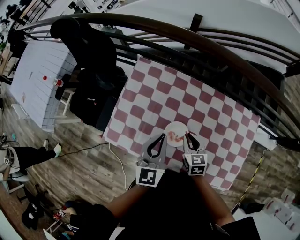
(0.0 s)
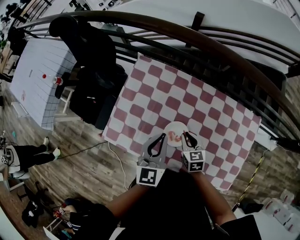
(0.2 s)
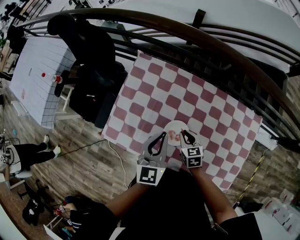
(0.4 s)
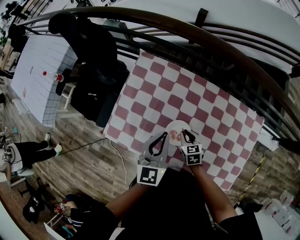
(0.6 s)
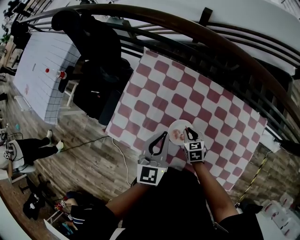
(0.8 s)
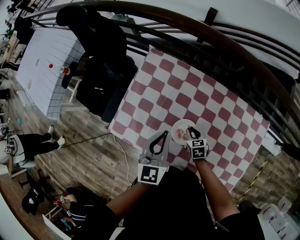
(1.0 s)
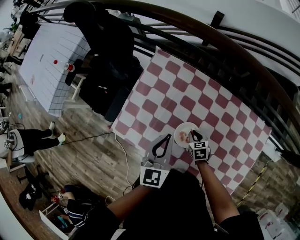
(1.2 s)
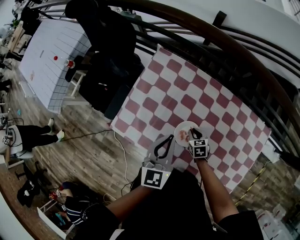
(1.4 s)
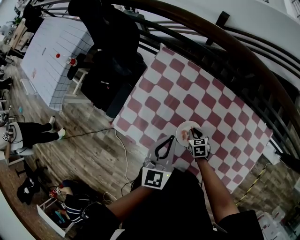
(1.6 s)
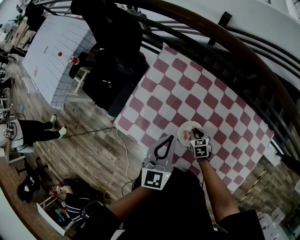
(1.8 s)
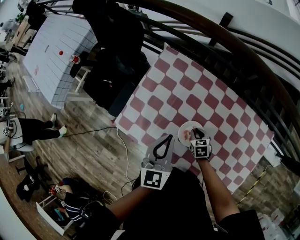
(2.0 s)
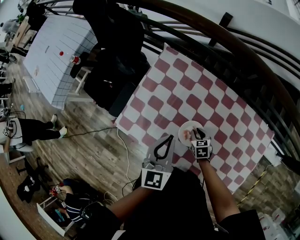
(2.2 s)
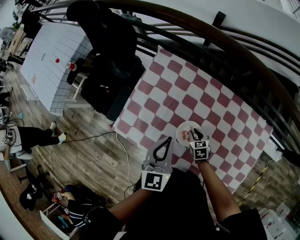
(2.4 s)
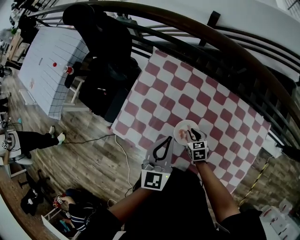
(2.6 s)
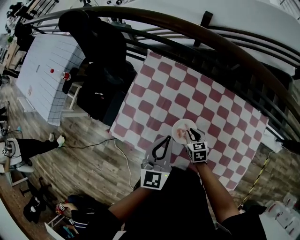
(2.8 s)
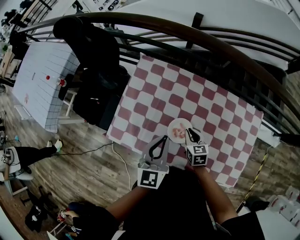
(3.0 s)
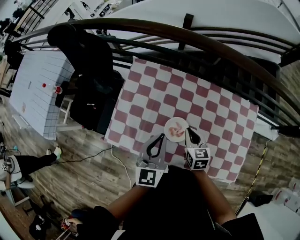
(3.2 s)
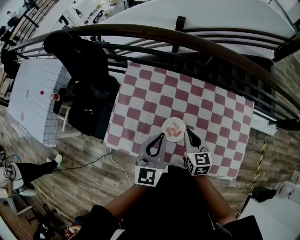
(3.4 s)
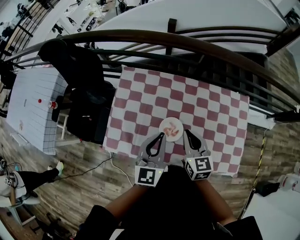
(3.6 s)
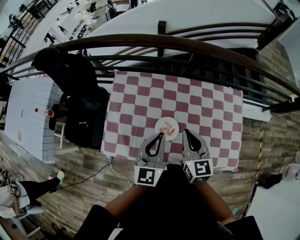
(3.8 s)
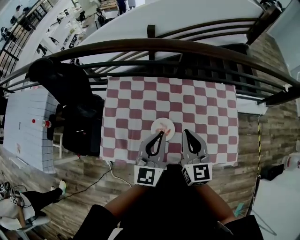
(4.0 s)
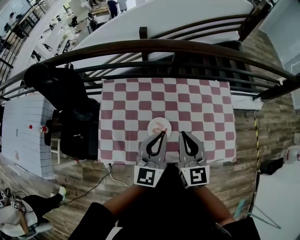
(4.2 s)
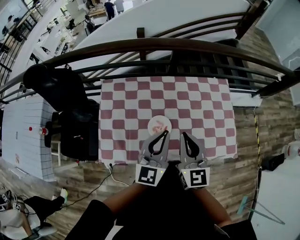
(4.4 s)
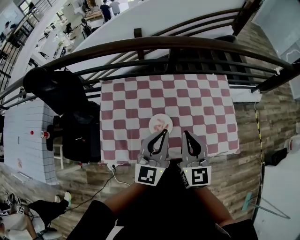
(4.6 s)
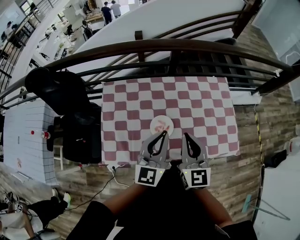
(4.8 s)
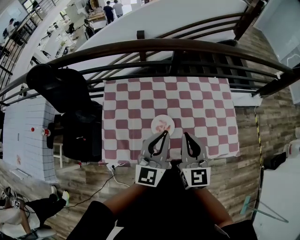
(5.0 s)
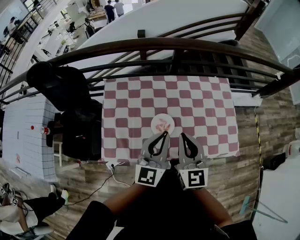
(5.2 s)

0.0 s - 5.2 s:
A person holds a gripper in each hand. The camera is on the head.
0.0 s - 1.8 s: The right gripper goes some 15 cm downward, and changes its angle by approximately 20 degrees.
1.8 s - 3.4 s: The right gripper shifts approximately 25 cm upward, and swivels approximately 40 degrees; the left gripper ends up roughly 5 cm from where it was.
3.4 s - 5.2 s: The right gripper travels upward and backward by about 15 cm, and turns by about 30 degrees, while the left gripper heads to the right, backward and upward, covering about 10 cm, and rotates some 20 degrees.

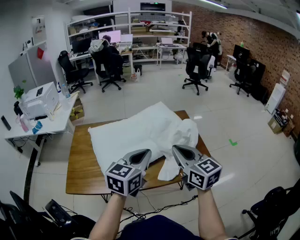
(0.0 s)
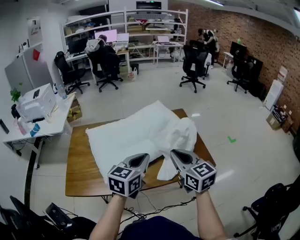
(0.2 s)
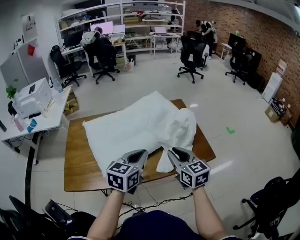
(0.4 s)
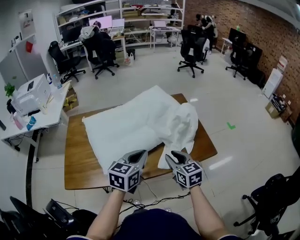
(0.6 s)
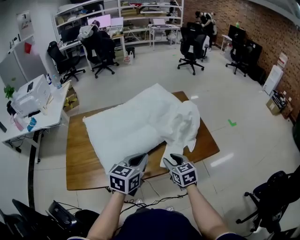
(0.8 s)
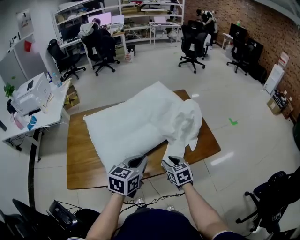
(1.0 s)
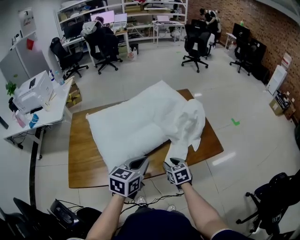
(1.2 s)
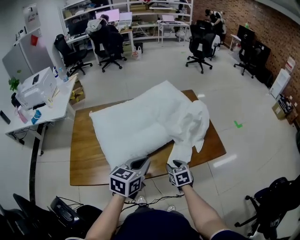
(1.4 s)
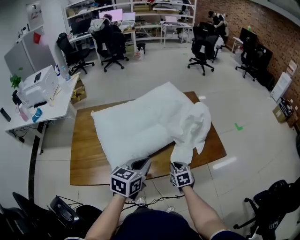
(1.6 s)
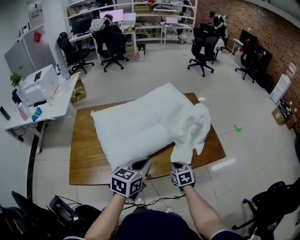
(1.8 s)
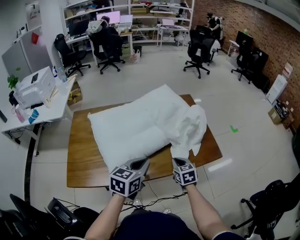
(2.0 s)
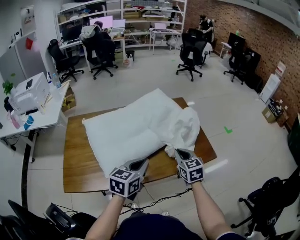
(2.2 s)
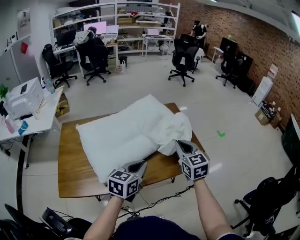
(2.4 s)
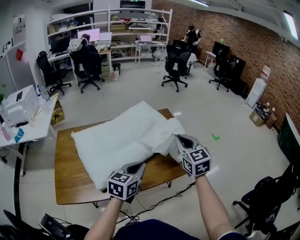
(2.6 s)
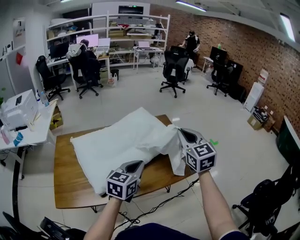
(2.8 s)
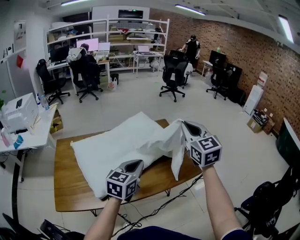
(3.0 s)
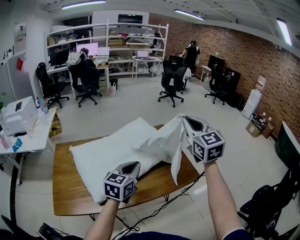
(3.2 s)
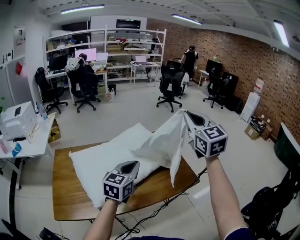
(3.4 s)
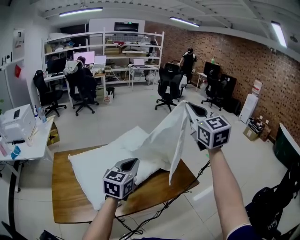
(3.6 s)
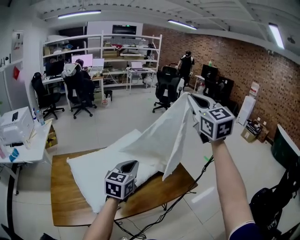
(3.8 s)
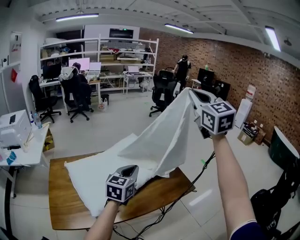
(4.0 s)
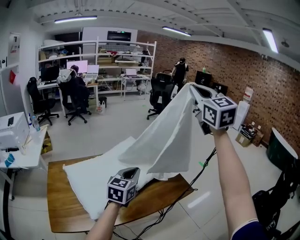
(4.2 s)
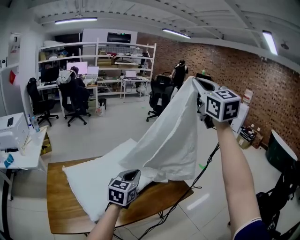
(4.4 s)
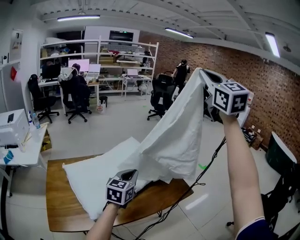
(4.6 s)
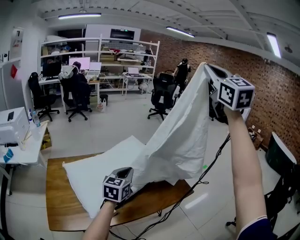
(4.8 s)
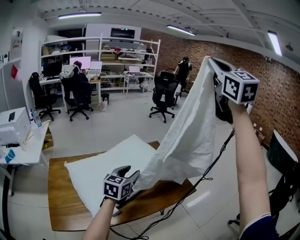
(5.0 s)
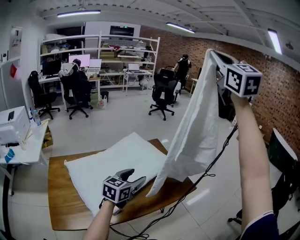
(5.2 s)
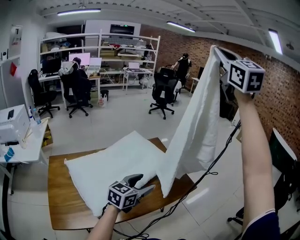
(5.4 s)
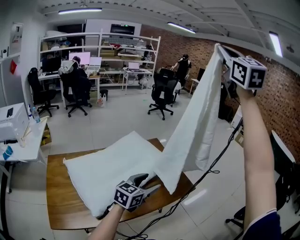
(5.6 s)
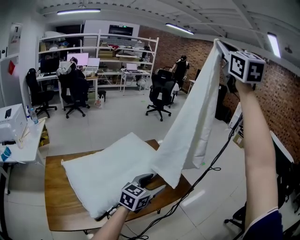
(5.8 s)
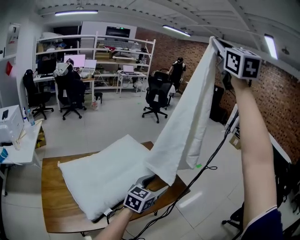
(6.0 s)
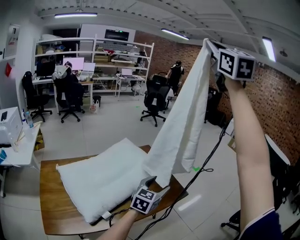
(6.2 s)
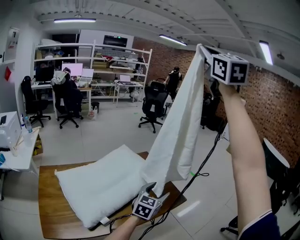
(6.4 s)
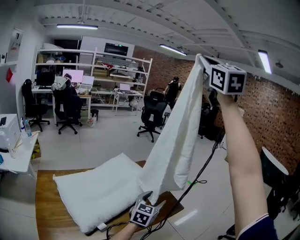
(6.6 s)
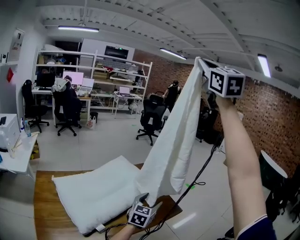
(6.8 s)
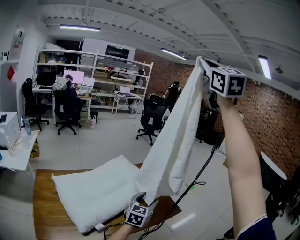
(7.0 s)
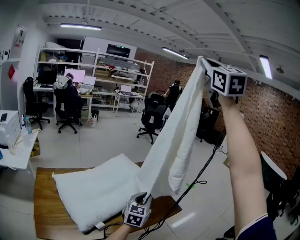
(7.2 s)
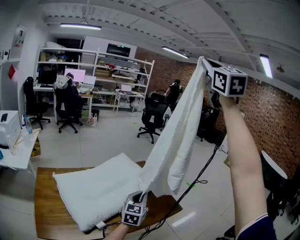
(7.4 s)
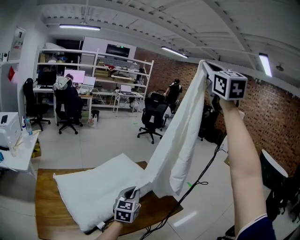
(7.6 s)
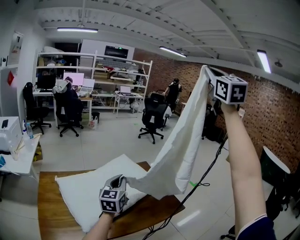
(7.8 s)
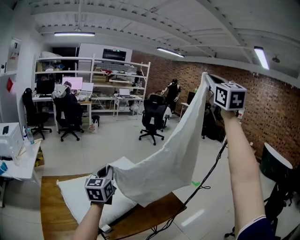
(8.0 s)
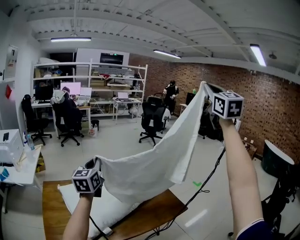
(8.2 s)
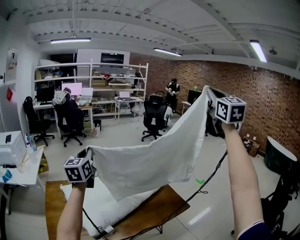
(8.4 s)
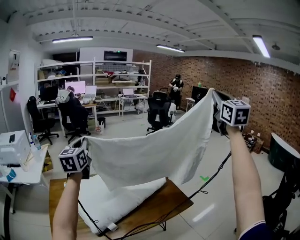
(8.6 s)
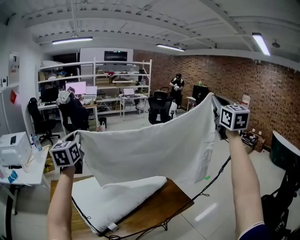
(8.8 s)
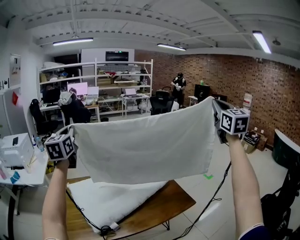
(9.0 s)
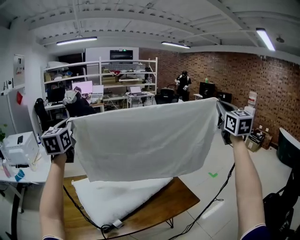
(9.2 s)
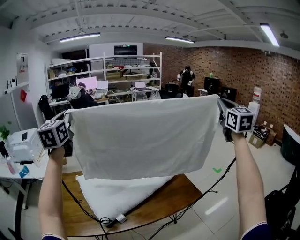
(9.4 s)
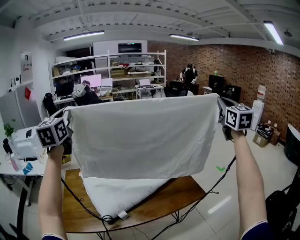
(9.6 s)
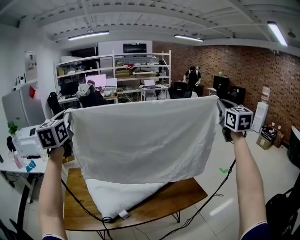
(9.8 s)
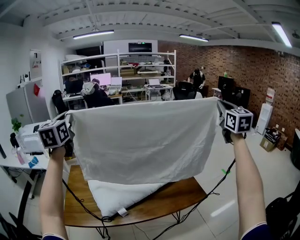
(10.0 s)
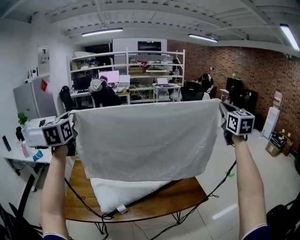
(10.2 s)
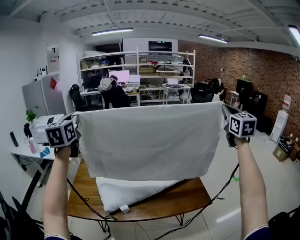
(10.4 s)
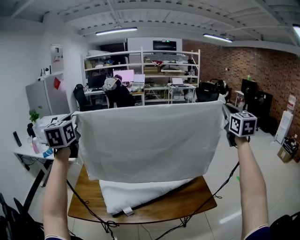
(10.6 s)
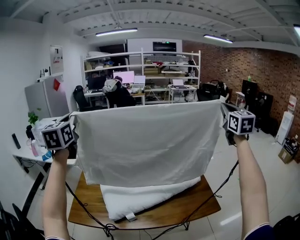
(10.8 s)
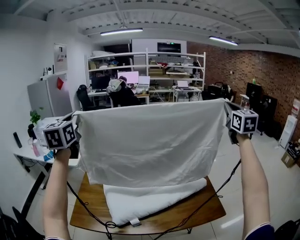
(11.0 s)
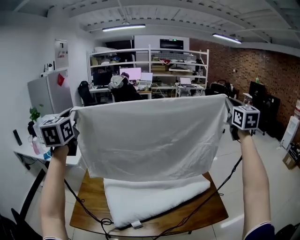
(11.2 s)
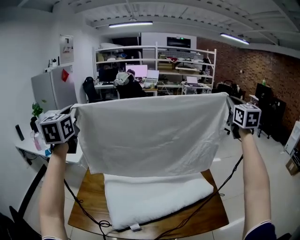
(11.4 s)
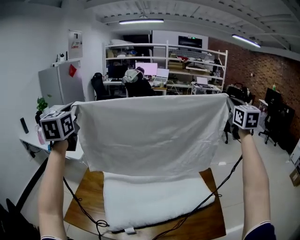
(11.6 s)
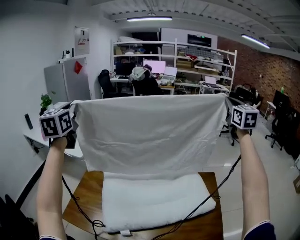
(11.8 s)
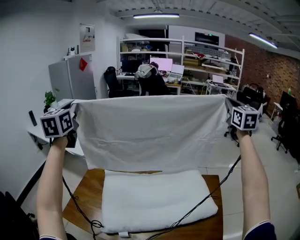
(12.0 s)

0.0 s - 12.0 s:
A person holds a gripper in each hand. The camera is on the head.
0.0 s - 1.6 s: The left gripper is displaced downward by about 15 cm, while the right gripper travels downward by roughly 35 cm, tilts its fingers approximately 40 degrees downward, and opens and closes again.
1.6 s - 3.0 s: The right gripper is displaced upward by some 40 cm, and tips its fingers upward by about 40 degrees, while the left gripper is displaced upward and forward by some 10 cm.
3.0 s - 4.4 s: The left gripper goes approximately 5 cm forward. Meanwhile the right gripper moves upward, some 30 cm.
4.4 s - 6.0 s: The right gripper goes some 15 cm upward; the left gripper moves to the right, roughly 10 cm, and opens its fingers.
6.0 s - 7.6 s: The left gripper travels to the left by about 10 cm, rotates approximately 20 degrees, and closes.
7.6 s - 9.0 s: The right gripper travels downward and to the right by some 25 cm. The left gripper heads to the left and upward, covering approximately 40 cm, and rotates about 30 degrees.
9.0 s - 10.4 s: The right gripper travels forward and downward by about 10 cm. The left gripper is displaced backward and to the left by roughly 15 cm.
10.4 s - 12.0 s: The left gripper travels forward and to the left by about 20 cm, while the right gripper is displaced forward by approximately 40 cm.

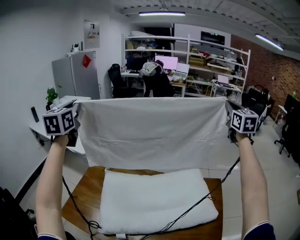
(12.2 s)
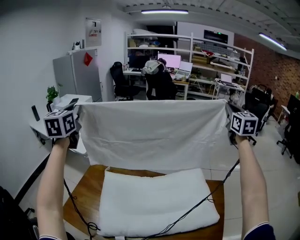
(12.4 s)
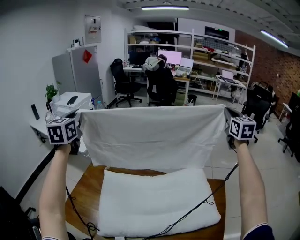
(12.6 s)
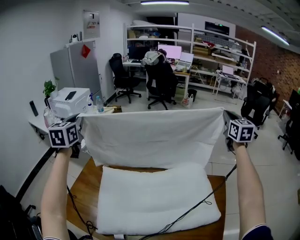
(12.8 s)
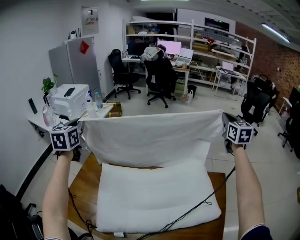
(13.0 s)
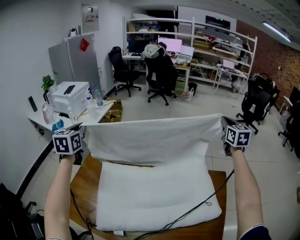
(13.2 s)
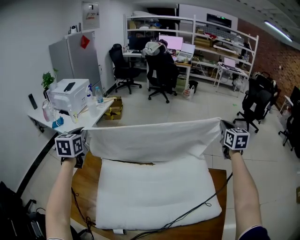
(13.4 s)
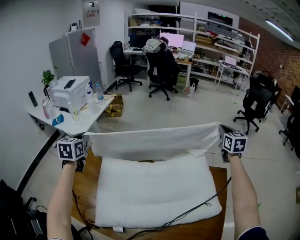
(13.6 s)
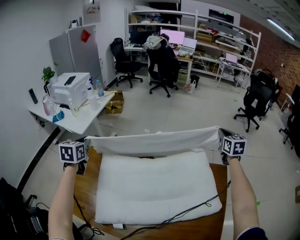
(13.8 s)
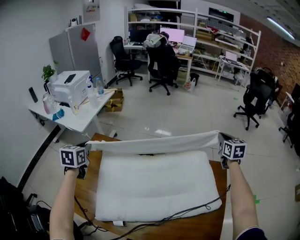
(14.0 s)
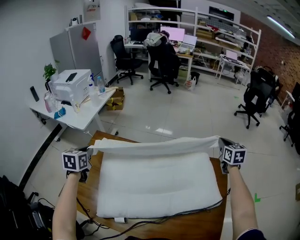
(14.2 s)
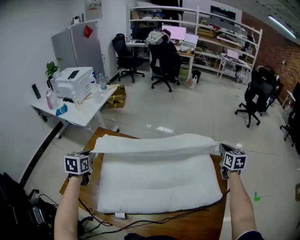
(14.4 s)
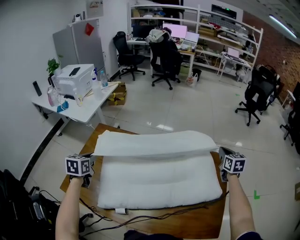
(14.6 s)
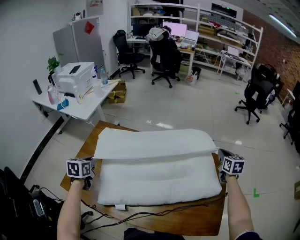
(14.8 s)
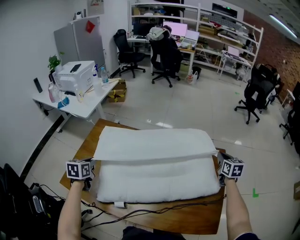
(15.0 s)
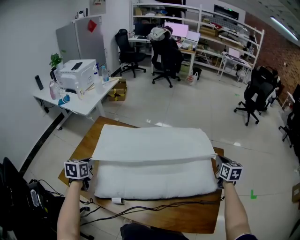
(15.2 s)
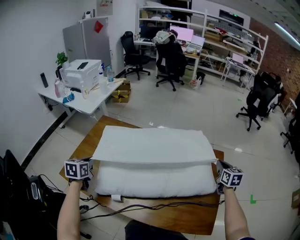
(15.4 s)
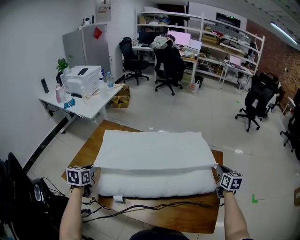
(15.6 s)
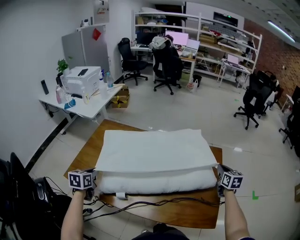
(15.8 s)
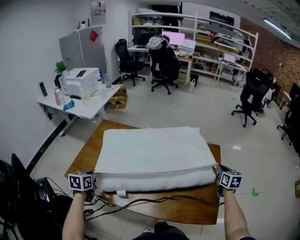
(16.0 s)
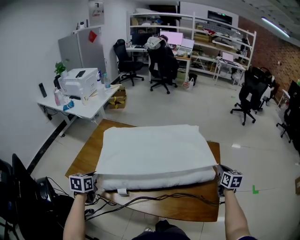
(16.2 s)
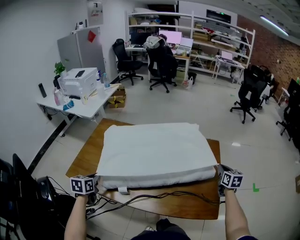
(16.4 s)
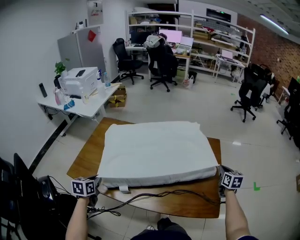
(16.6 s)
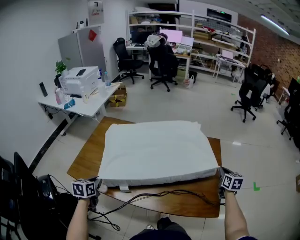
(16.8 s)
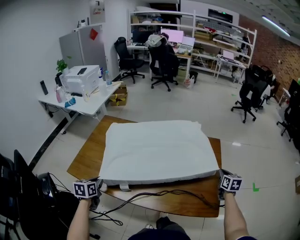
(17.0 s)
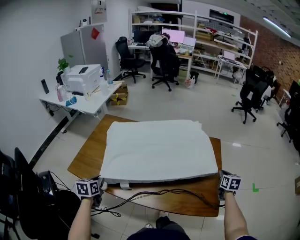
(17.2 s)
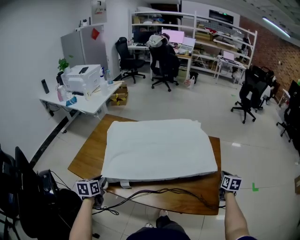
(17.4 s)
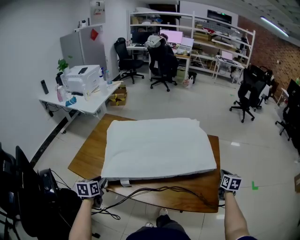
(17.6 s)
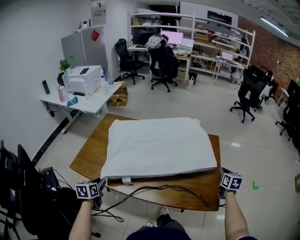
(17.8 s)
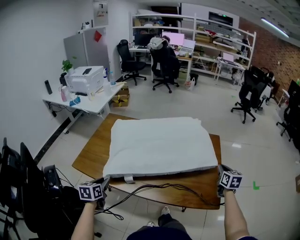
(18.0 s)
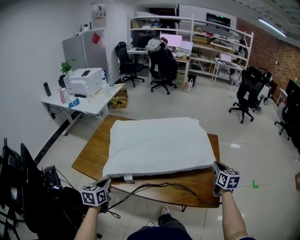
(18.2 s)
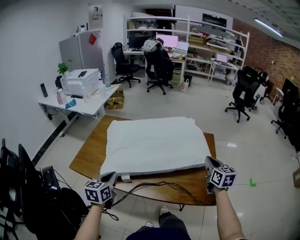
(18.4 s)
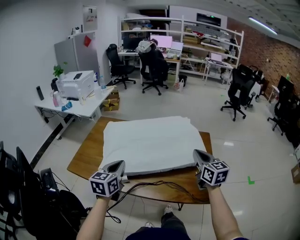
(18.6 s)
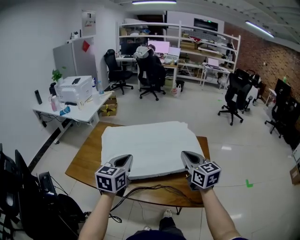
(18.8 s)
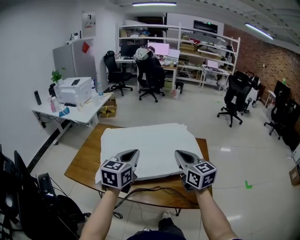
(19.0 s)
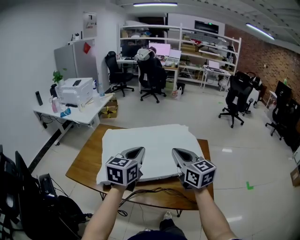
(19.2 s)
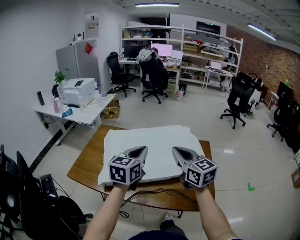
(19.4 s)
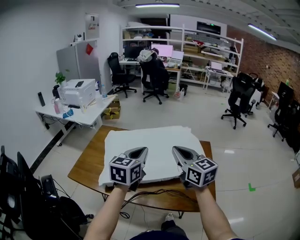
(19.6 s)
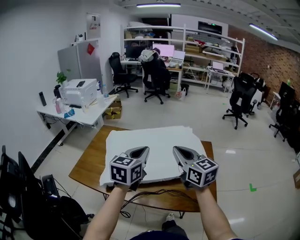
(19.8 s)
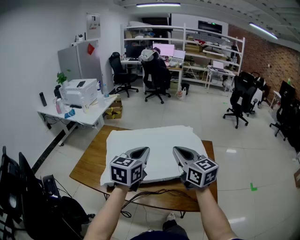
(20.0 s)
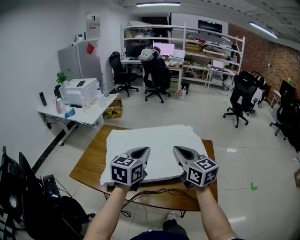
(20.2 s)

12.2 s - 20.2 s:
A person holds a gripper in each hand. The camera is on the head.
12.2 s - 13.8 s: The grippers both shift downward by roughly 30 cm. The left gripper changes its angle by roughly 30 degrees, while the right gripper turns by about 20 degrees.
13.8 s - 15.4 s: Both grippers move backward and downward, approximately 25 cm.
15.4 s - 17.0 s: The grippers both shift backward and downward by approximately 15 cm.
17.0 s - 18.6 s: The right gripper travels to the left and upward by about 25 cm, and rotates roughly 30 degrees. Meanwhile the left gripper is displaced upward and to the right by some 20 cm, changes its angle by about 30 degrees, and opens and closes again.
18.6 s - 20.2 s: The right gripper travels to the left and upward by some 15 cm, while the left gripper goes approximately 15 cm upward and to the right.
